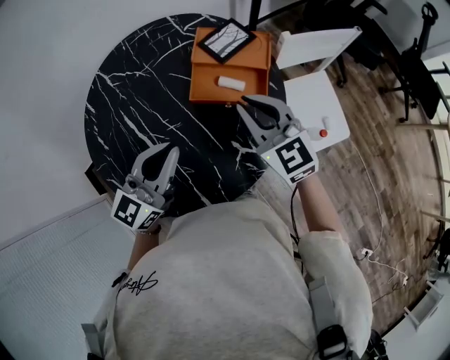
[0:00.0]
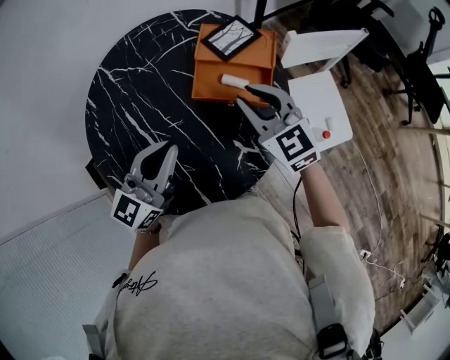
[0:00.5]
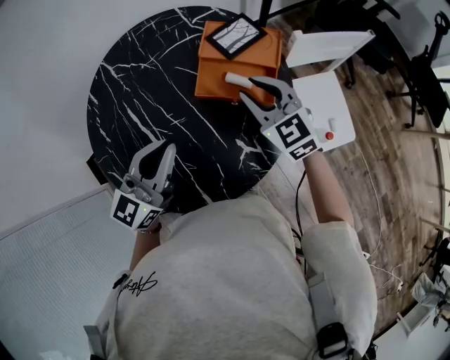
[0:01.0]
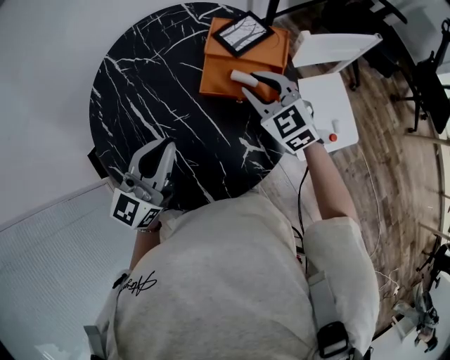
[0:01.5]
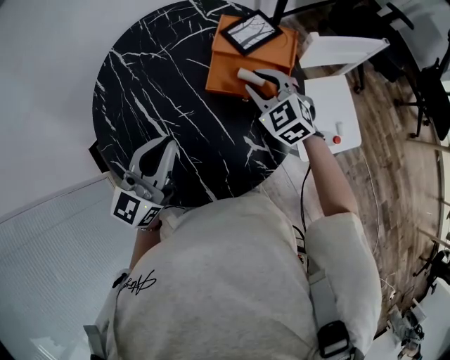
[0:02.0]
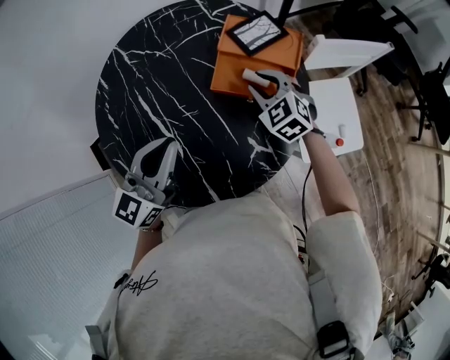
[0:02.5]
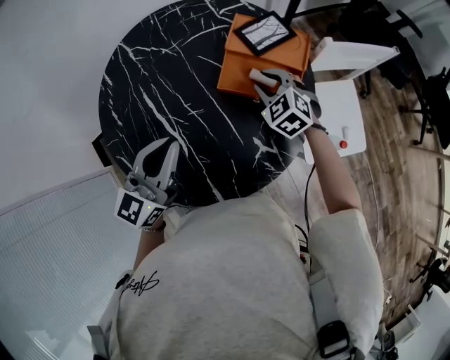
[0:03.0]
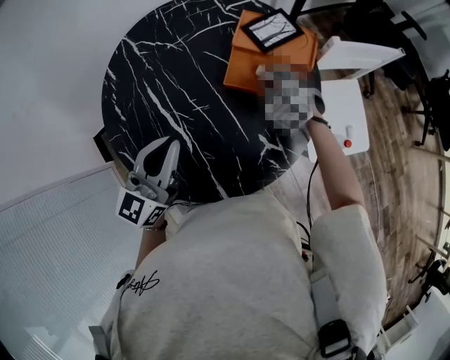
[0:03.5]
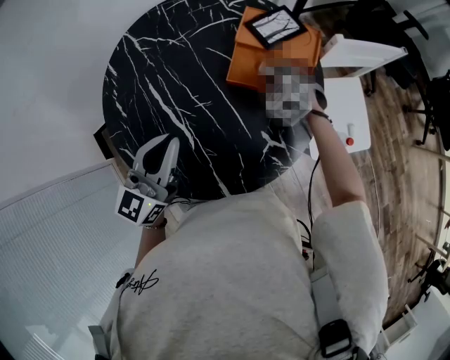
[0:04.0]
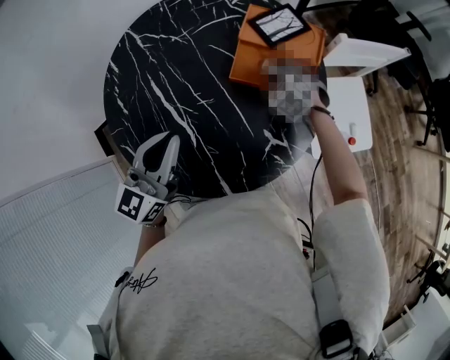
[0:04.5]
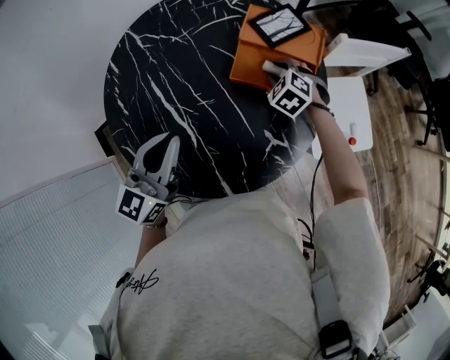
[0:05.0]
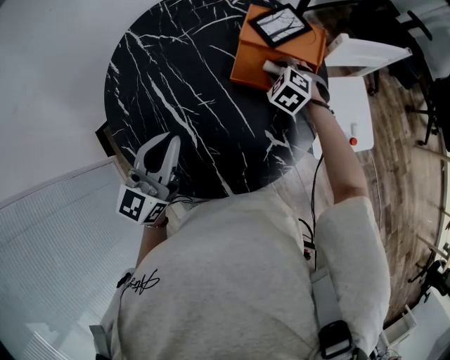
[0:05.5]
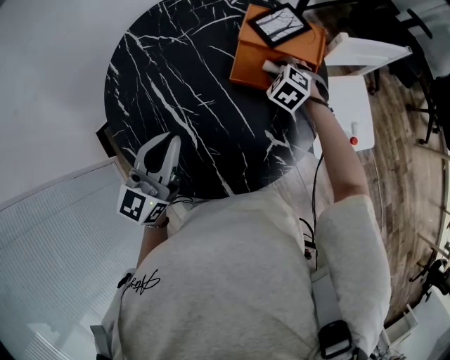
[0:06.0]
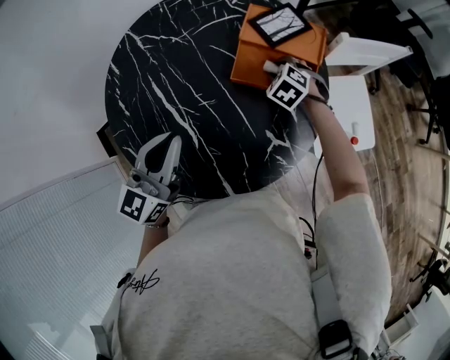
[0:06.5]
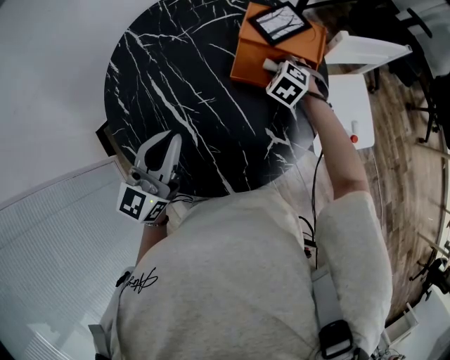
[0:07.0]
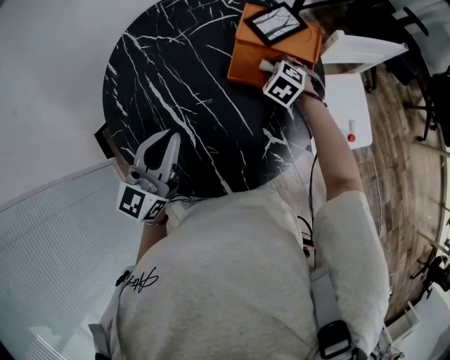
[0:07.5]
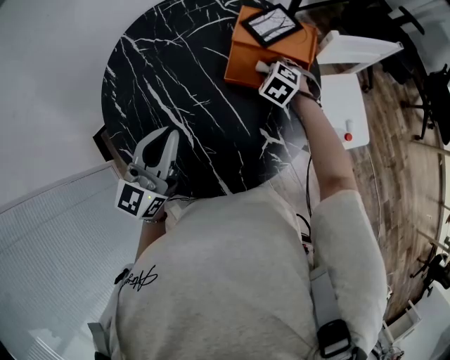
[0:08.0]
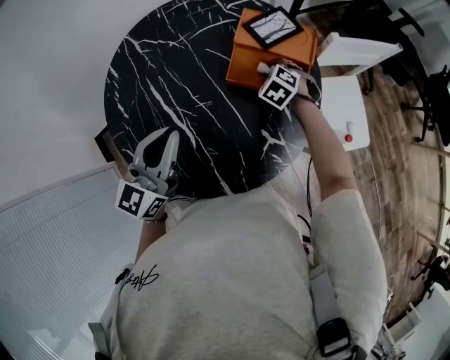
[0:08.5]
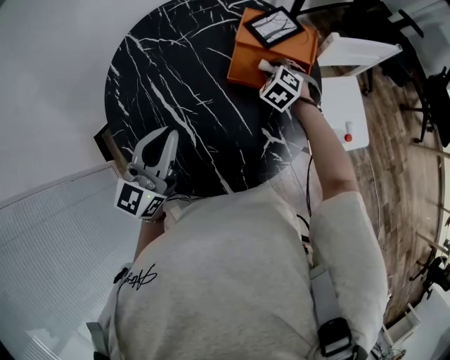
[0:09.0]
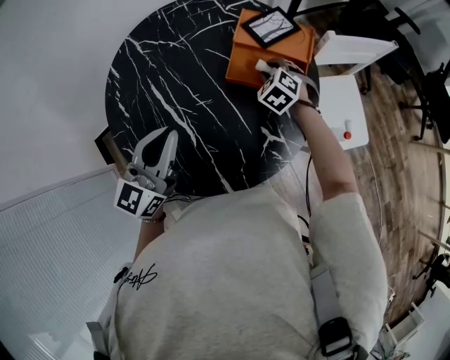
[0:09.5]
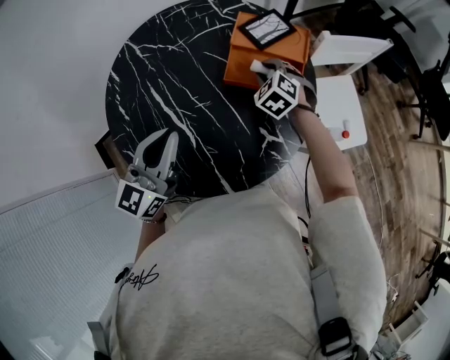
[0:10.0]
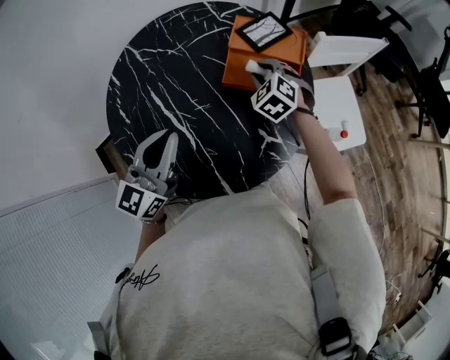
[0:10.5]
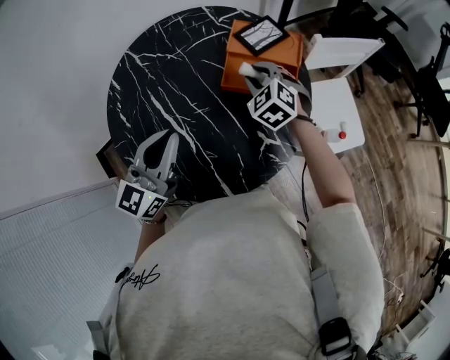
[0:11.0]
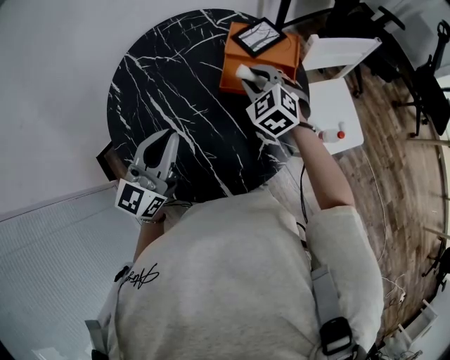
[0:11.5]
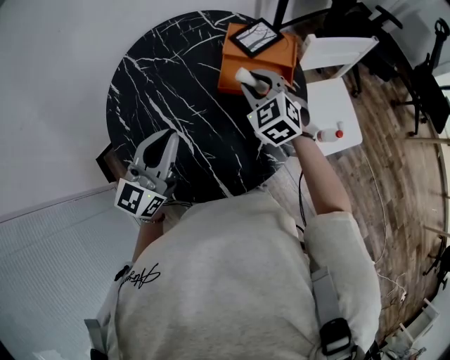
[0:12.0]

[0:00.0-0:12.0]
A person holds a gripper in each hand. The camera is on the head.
0:00.0 to 0:02.0: The right gripper goes some 15 cm downward and forward, and turns by approximately 20 degrees.
0:02.0 to 0:04.0: The right gripper moves downward, roughly 10 cm, and rotates about 20 degrees.
0:04.0 to 0:06.0: The grippers move only a little.
0:06.0 to 0:08.0: Both grippers stay put.
0:08.0 to 0:10.0: The right gripper heads upward, covering approximately 5 cm.
0:10.0 to 0:12.0: The right gripper goes roughly 10 cm upward and backward, and turns by roughly 20 degrees.

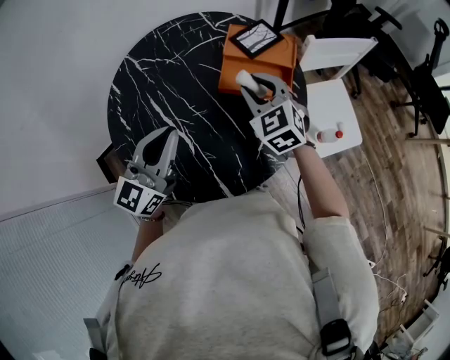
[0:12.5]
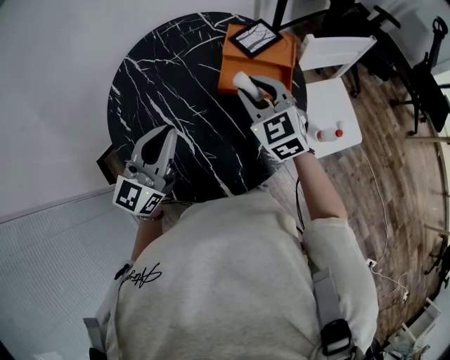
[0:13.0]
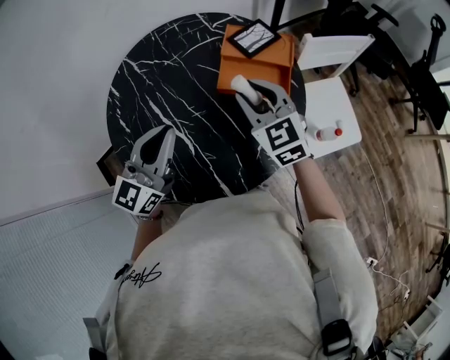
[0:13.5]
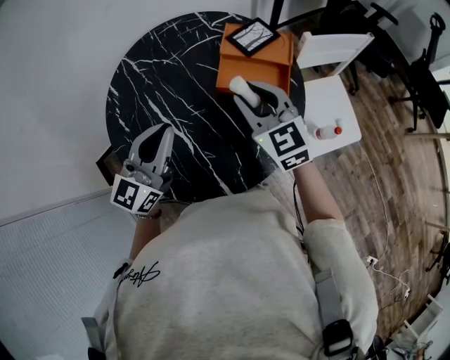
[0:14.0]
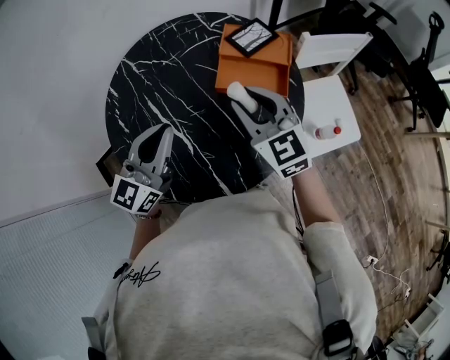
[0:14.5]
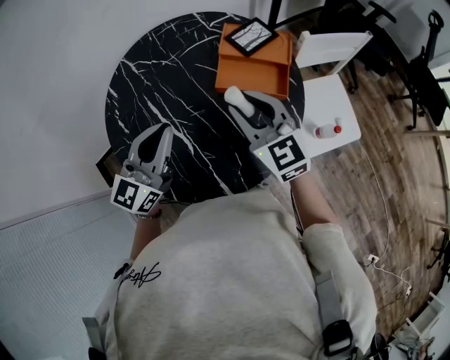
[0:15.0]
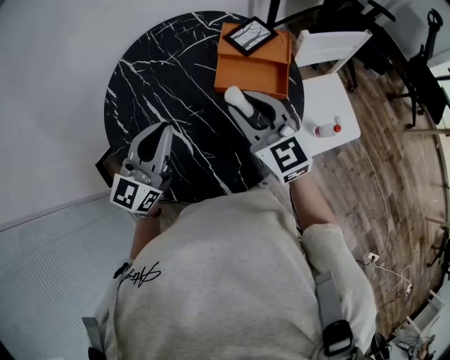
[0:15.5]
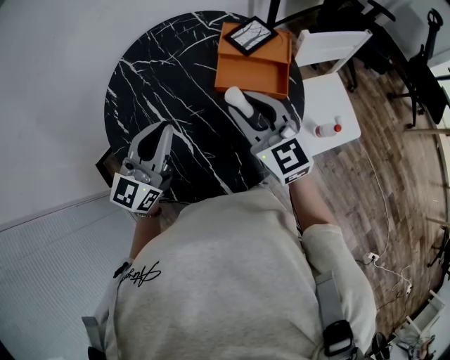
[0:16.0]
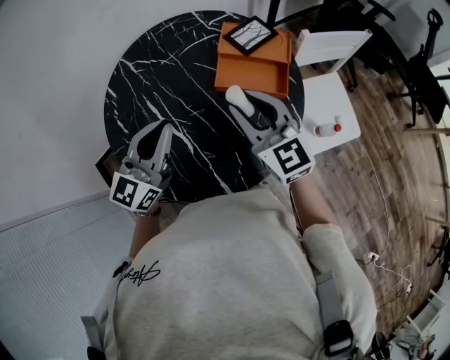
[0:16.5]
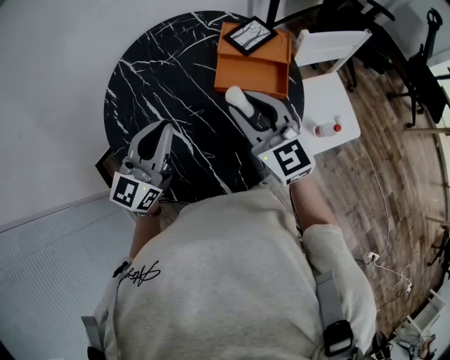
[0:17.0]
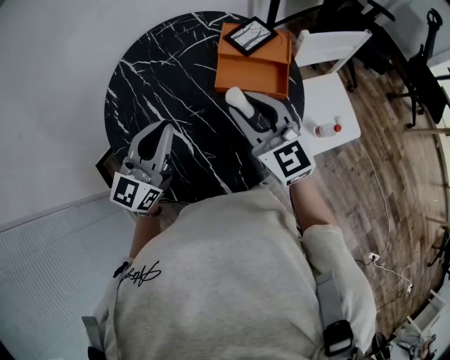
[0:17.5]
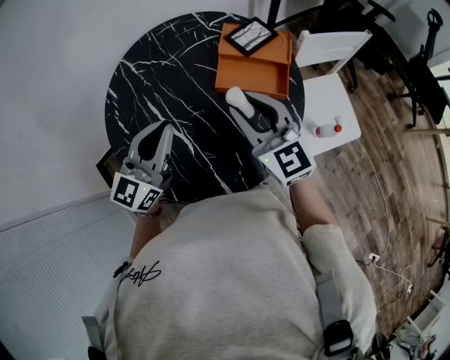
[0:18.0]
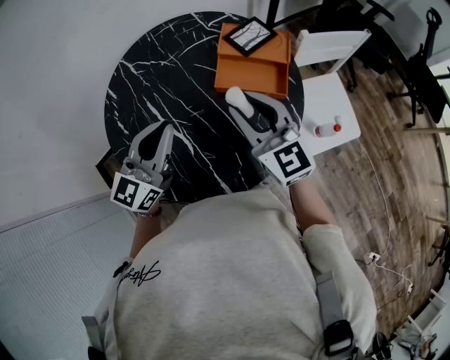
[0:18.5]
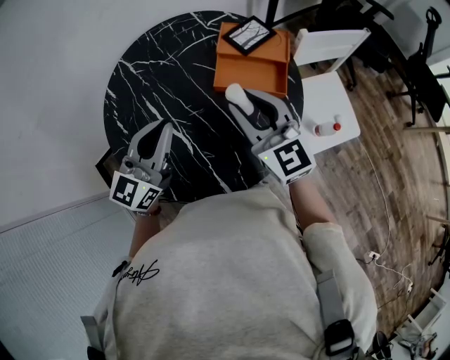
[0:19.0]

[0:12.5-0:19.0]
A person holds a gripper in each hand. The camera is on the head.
0:12.5 to 0:14.5: The right gripper shifts roughly 10 cm backward and upward.
0:14.5 to 0:17.0: The grippers stay close to where they were, moving slightly.
0:17.0 to 0:19.0: Both grippers stay about where they are.

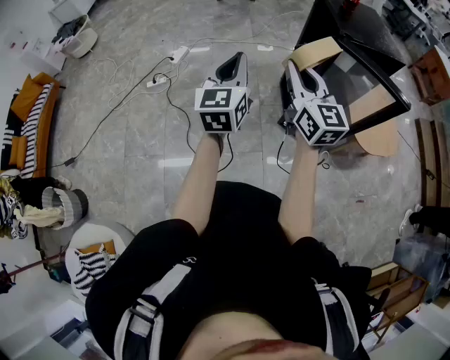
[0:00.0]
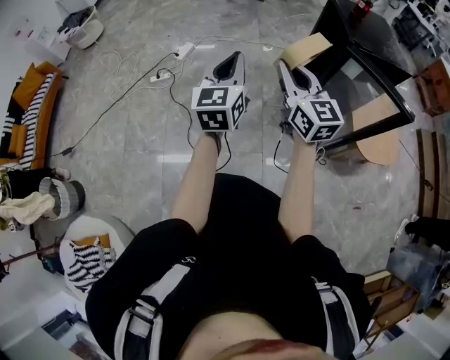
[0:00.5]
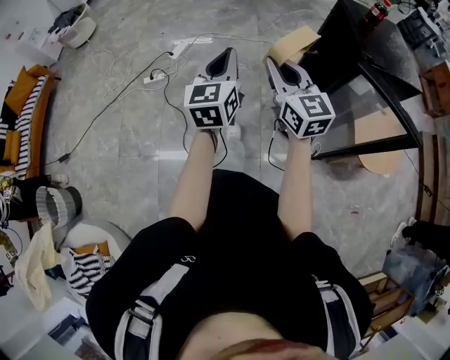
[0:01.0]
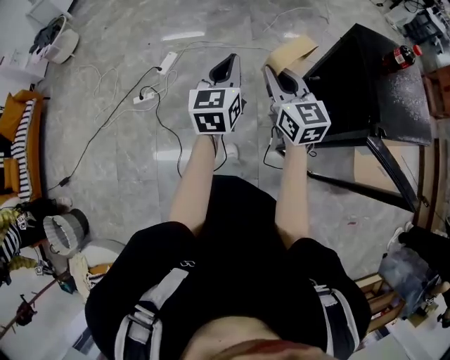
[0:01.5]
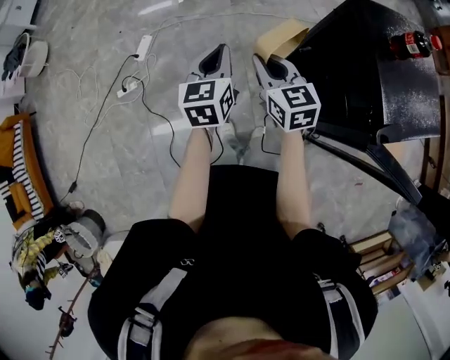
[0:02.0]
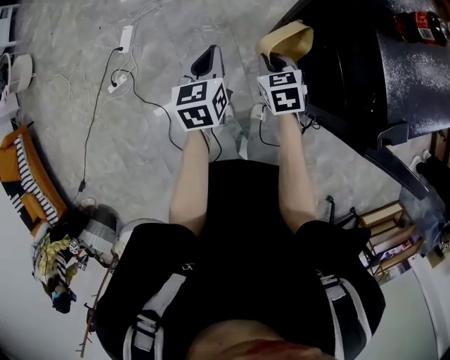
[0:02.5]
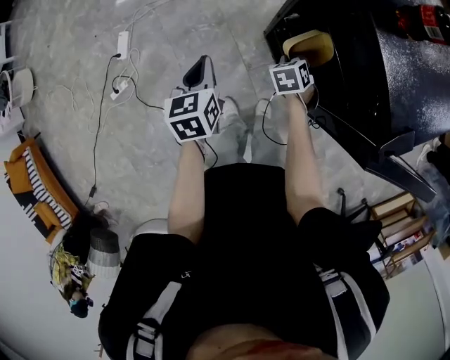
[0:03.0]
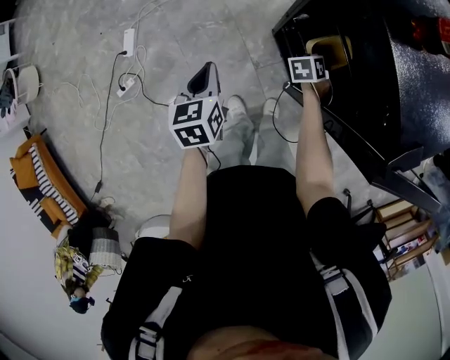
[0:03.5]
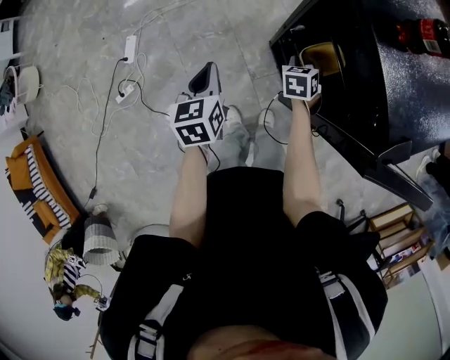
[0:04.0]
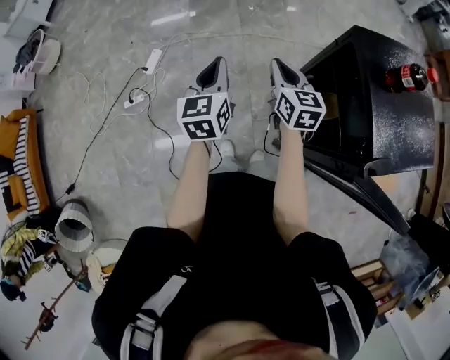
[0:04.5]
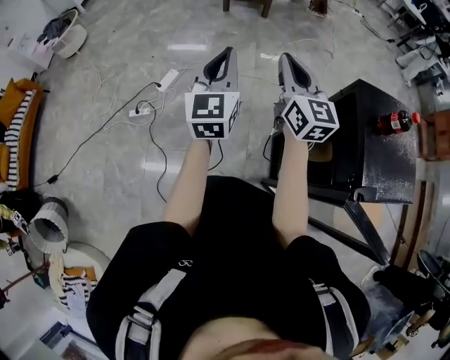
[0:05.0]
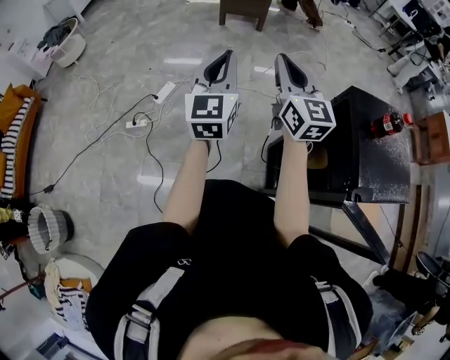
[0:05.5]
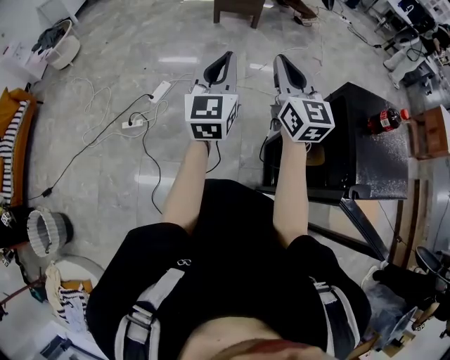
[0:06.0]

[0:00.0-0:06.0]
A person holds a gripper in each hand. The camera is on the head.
0:00.0 to 0:02.0: The pair of grippers is taken forward, about 50 cm. The left gripper rotates roughly 20 degrees. Meanwhile the right gripper shifts approximately 20 cm downward, and changes its angle by roughly 30 degrees.
0:02.0 to 0:04.0: The right gripper goes approximately 25 cm downward, angles its fingers downward, by approximately 30 degrees, and opens, while the left gripper shifts roughly 10 cm downward.
0:04.0 to 0:06.0: The left gripper shifts roughly 30 cm upward, and points its fingers about 40 degrees further upward; the right gripper heads upward, covering some 40 cm, points its fingers about 60 degrees further upward, and closes.

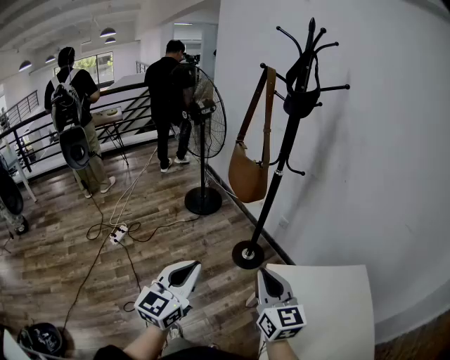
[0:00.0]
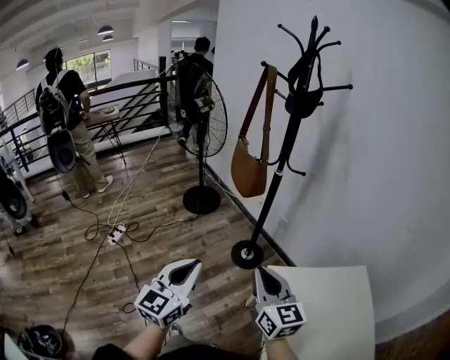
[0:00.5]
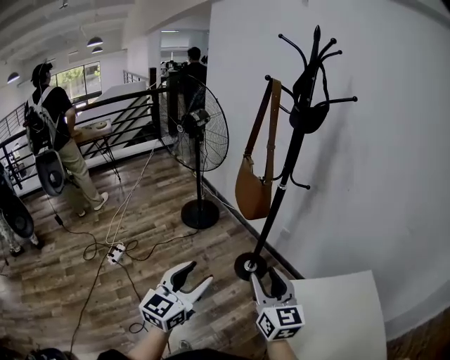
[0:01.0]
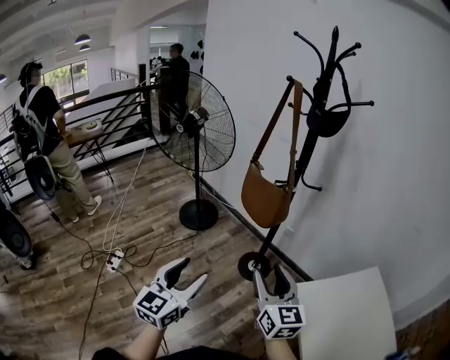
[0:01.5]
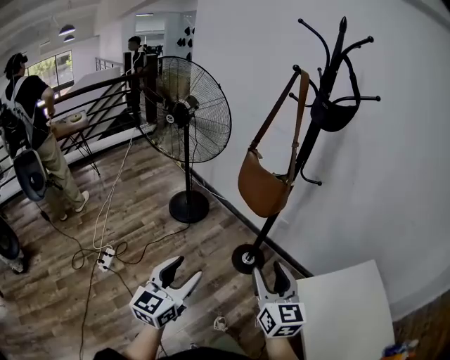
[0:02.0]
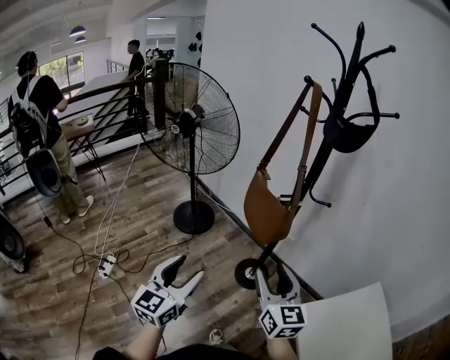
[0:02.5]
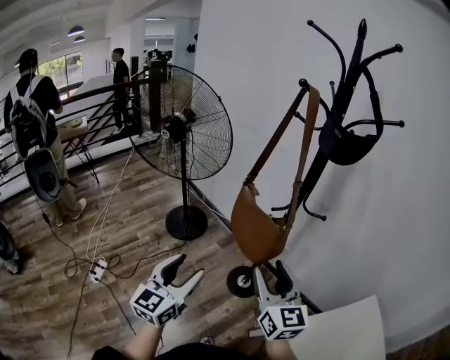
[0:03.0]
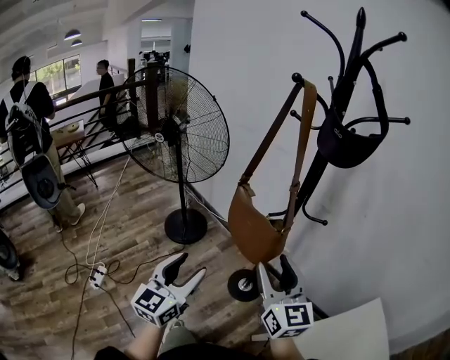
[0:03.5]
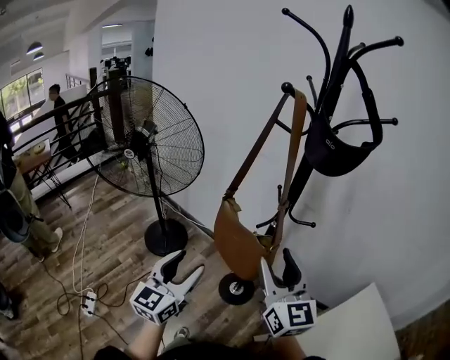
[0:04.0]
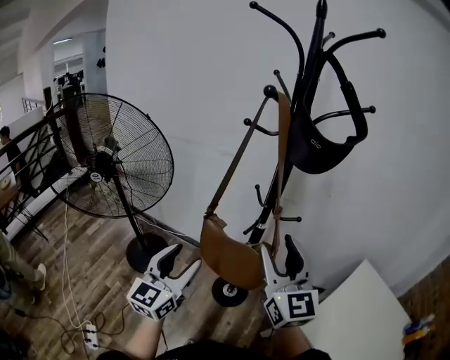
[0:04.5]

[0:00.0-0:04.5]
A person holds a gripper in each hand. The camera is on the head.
0:00.0 to 0:02.0: The grippers both shift to the left and forward by approximately 25 cm. The right gripper opens up. Meanwhile the left gripper opens.
0:02.0 to 0:04.5: The left gripper is displaced forward by approximately 35 cm, and turns by roughly 20 degrees; the right gripper is displaced forward and upward by about 30 cm, and changes its angle by roughly 30 degrees.
